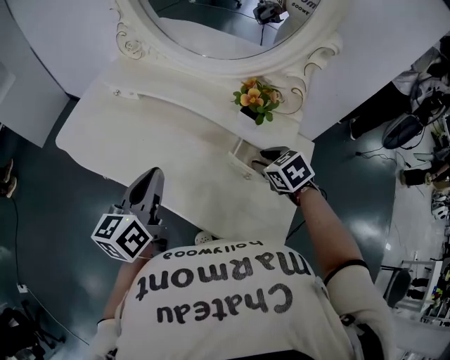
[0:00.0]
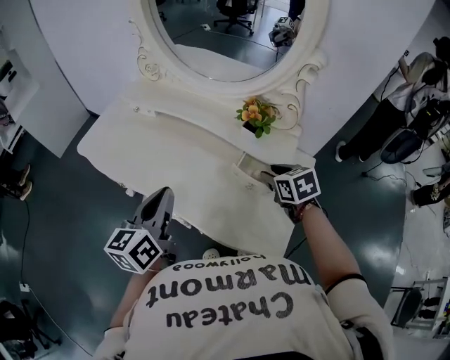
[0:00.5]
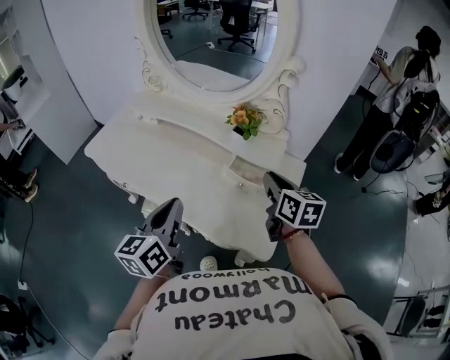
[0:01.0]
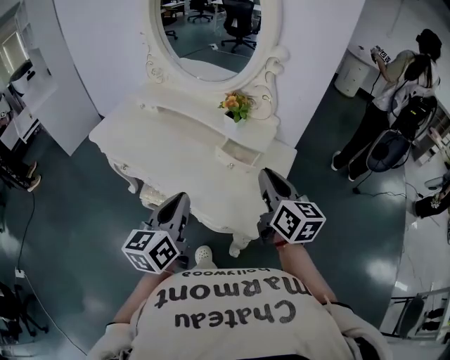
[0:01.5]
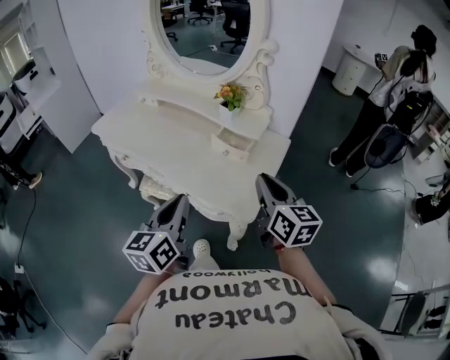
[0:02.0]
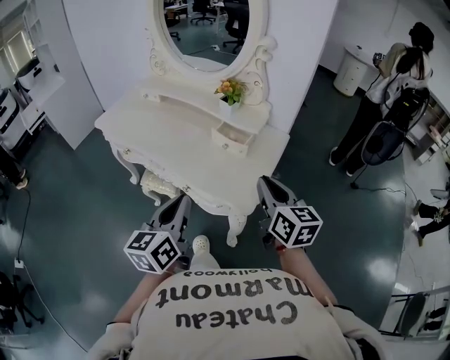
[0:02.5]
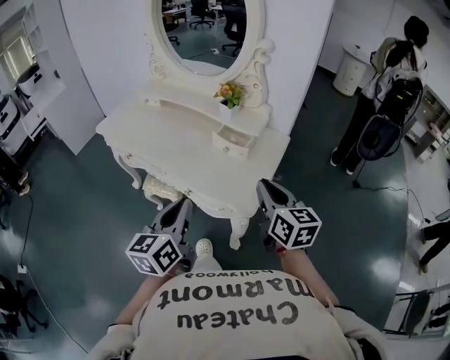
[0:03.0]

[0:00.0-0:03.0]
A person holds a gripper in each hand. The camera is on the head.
0:00.0 to 0:01.5: The right gripper moves upward and backward, approximately 25 cm, tilts its fingers roughly 50 degrees upward, and closes up; the left gripper is displaced backward and to the right by roughly 20 cm.
0:01.5 to 0:03.0: Both grippers travel together backward, some 10 cm.

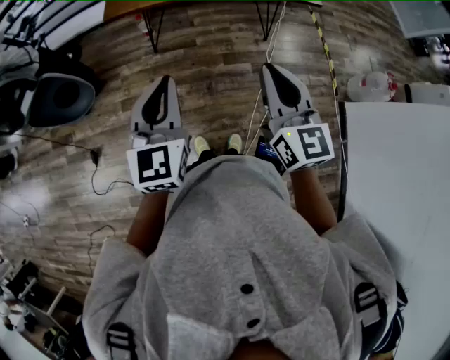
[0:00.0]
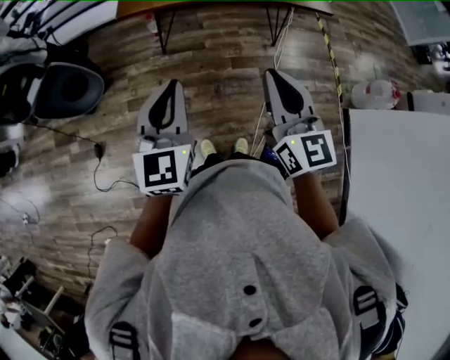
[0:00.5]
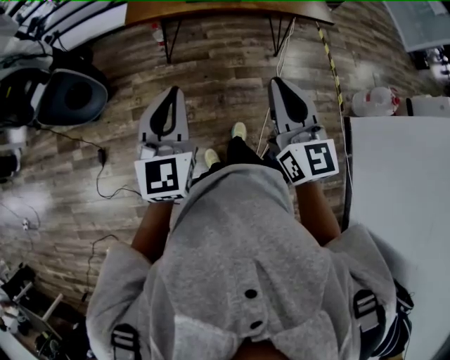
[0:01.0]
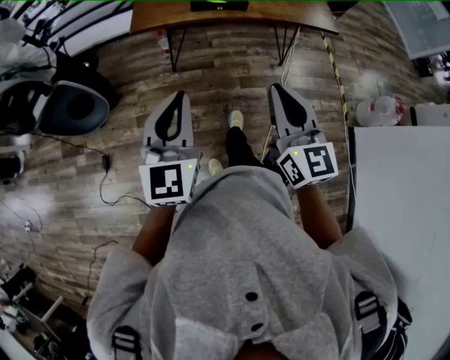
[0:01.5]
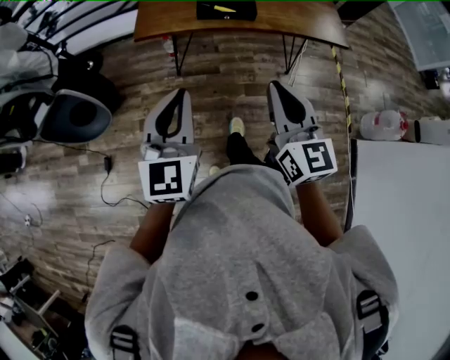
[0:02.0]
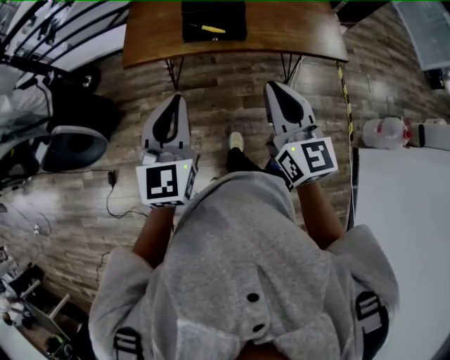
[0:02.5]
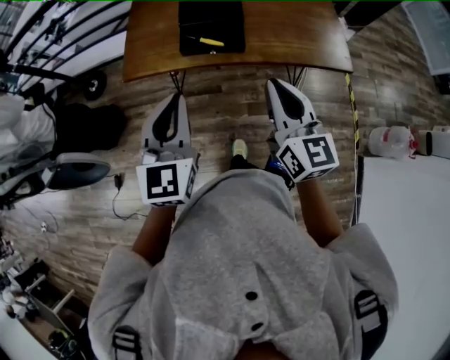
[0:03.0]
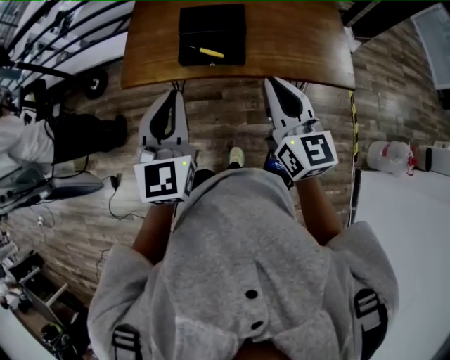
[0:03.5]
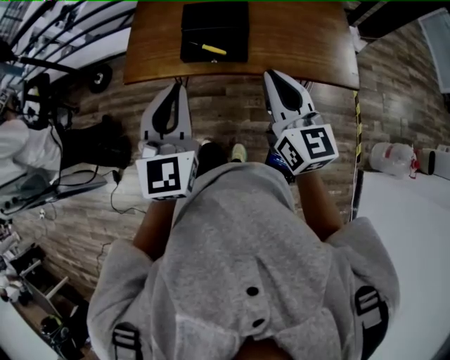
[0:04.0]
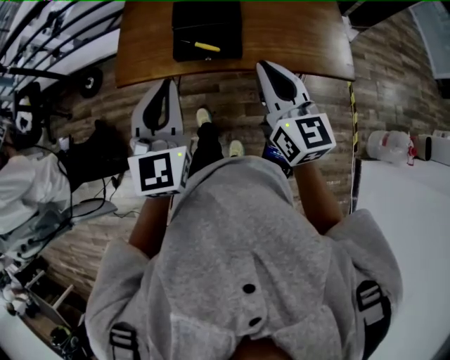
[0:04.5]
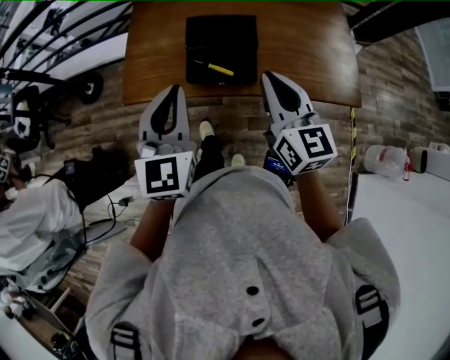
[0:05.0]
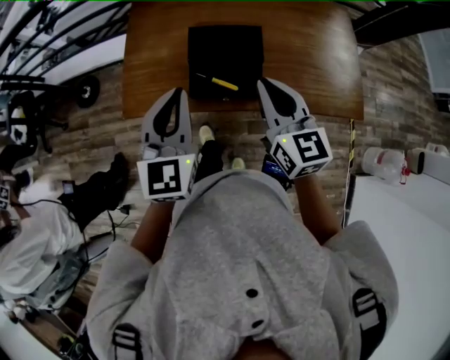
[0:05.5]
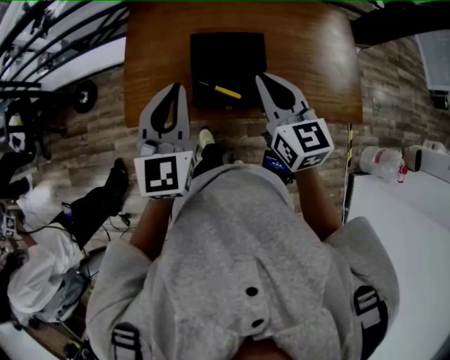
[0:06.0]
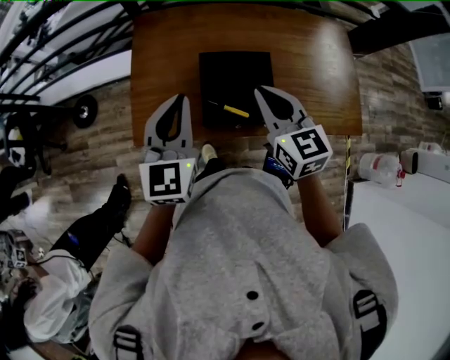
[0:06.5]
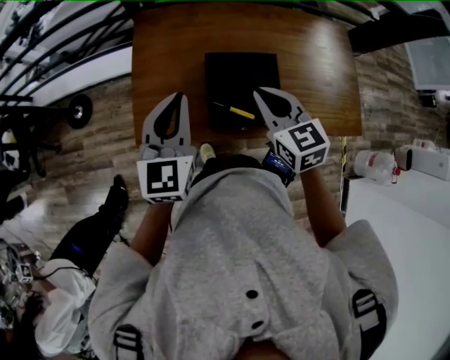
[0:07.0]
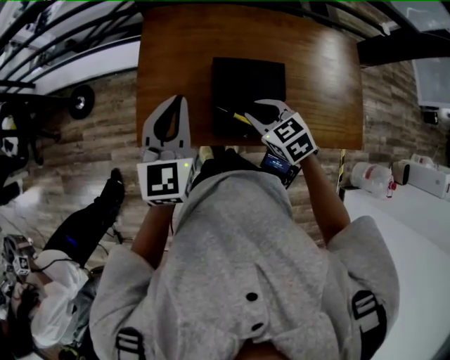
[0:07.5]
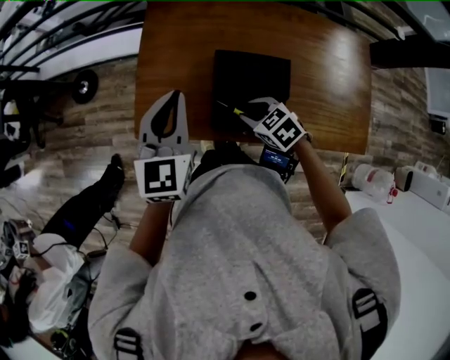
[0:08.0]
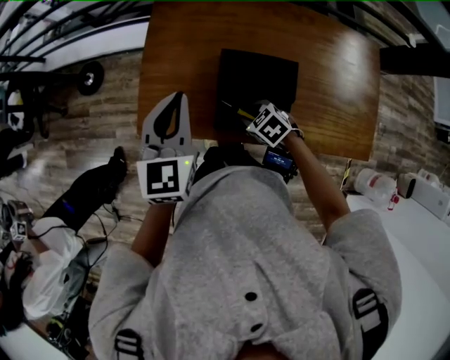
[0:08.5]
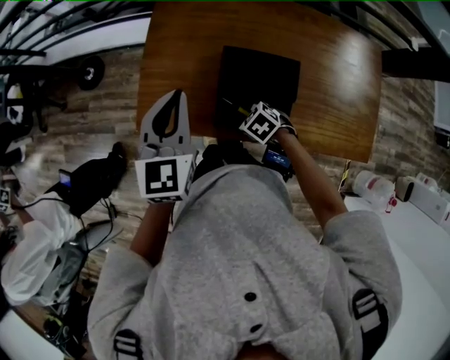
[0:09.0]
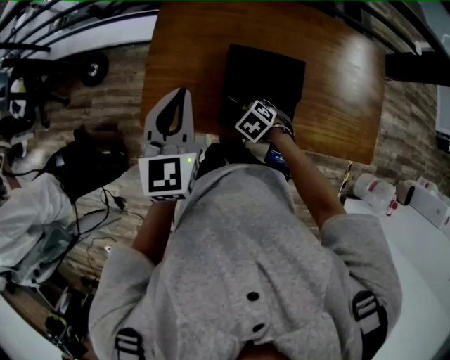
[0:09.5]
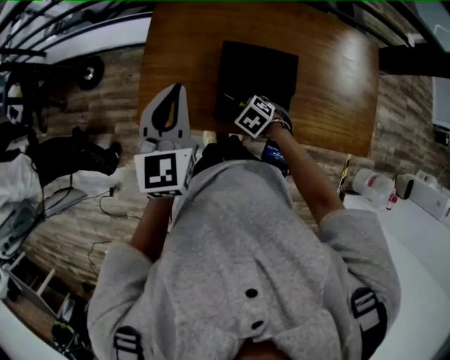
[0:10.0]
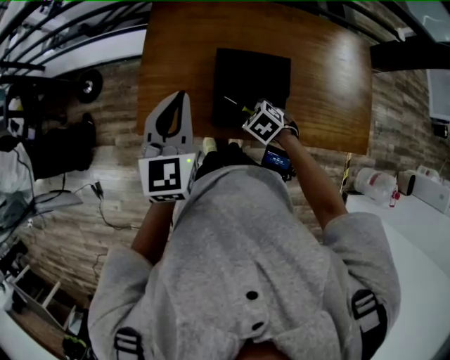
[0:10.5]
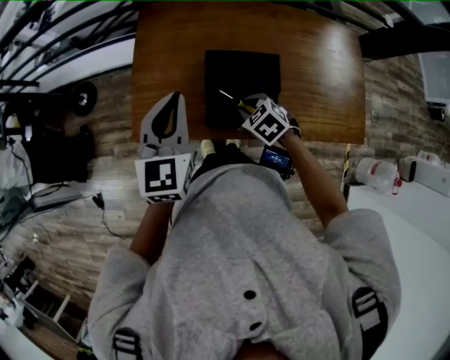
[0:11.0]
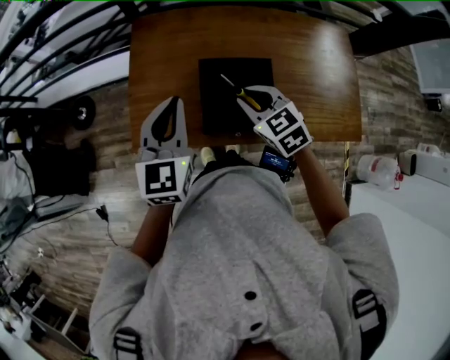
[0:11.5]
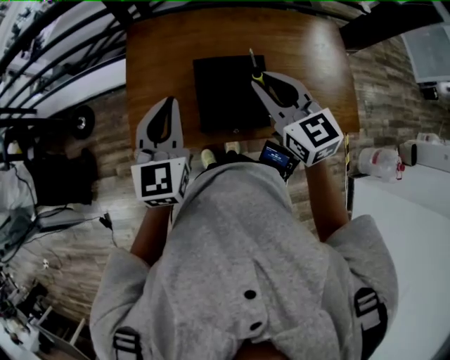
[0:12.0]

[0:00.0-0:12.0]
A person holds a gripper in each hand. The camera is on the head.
0:00.0 to 0:02.0: The left gripper is displaced forward by roughly 10 cm. The right gripper goes about 15 cm forward and to the left.
0:02.0 to 0:04.0: The grippers both shift forward and to the right by approximately 30 cm.
0:04.0 to 0:06.0: Both grippers move forward, approximately 25 cm.
0:06.0 to 0:08.0: The left gripper is displaced forward and to the left by roughly 10 cm. Meanwhile the right gripper shifts approximately 20 cm downward, points its fingers approximately 40 degrees further downward, and opens.
0:08.0 to 0:10.0: The right gripper shifts some 10 cm downward, and changes its angle by approximately 20 degrees.
0:10.0 to 0:12.0: The right gripper travels upward by roughly 30 cm, and tips its fingers upward by roughly 60 degrees.

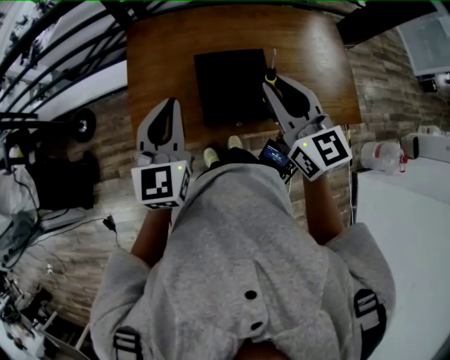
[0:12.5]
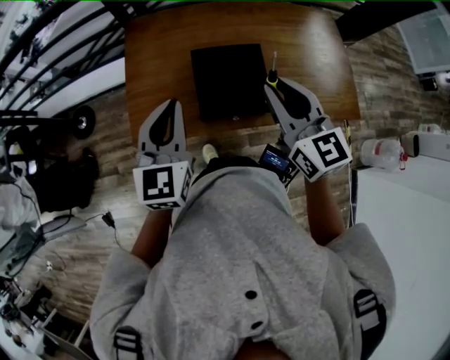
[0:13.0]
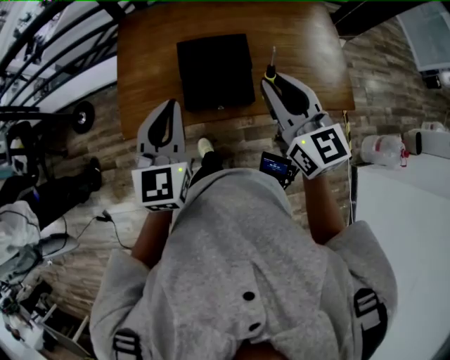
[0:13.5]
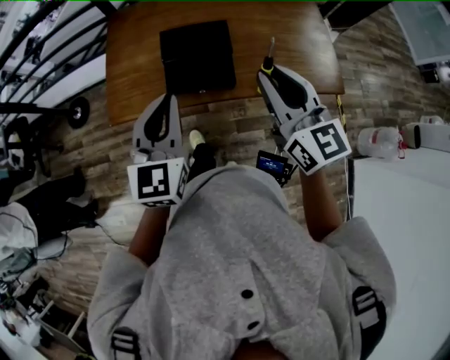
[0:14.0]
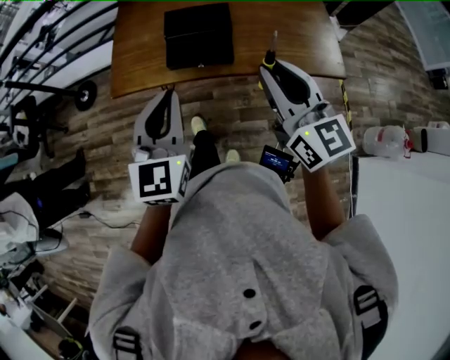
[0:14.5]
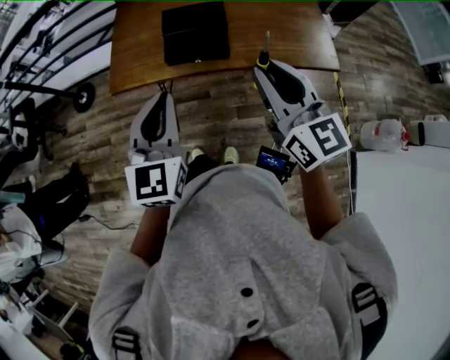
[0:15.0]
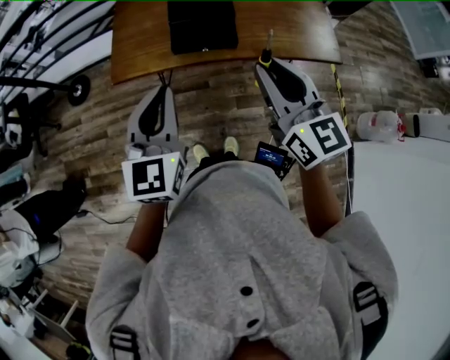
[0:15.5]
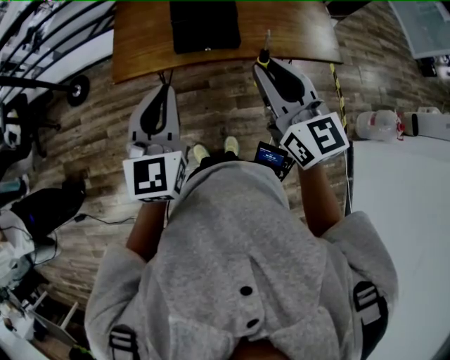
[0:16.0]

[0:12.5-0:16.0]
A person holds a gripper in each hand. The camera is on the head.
0:12.5 to 0:14.5: Both grippers travel together backward and to the right, some 30 cm.
0:14.5 to 0:16.0: The right gripper moves to the left and backward, approximately 10 cm; the left gripper travels to the left by about 10 cm.

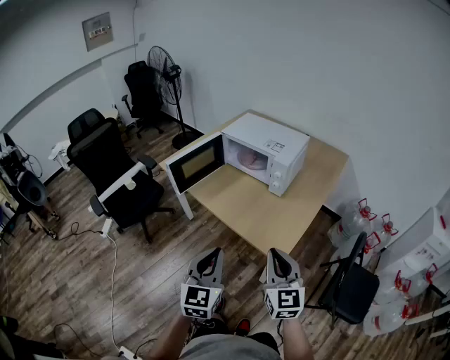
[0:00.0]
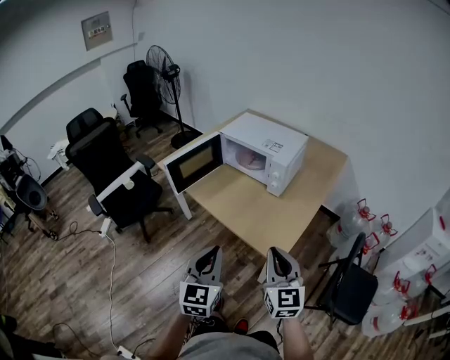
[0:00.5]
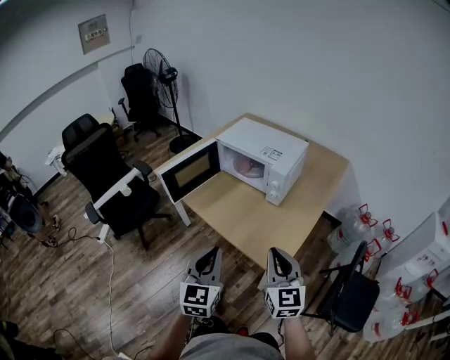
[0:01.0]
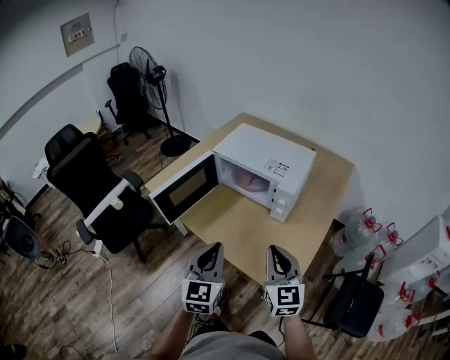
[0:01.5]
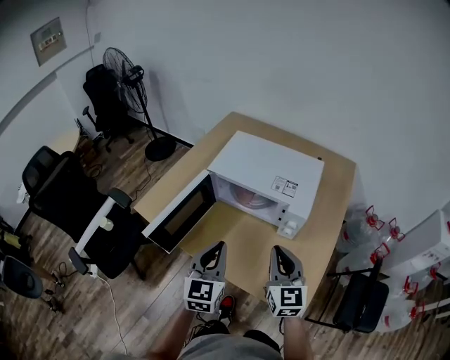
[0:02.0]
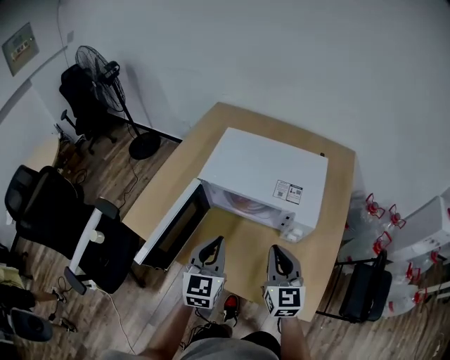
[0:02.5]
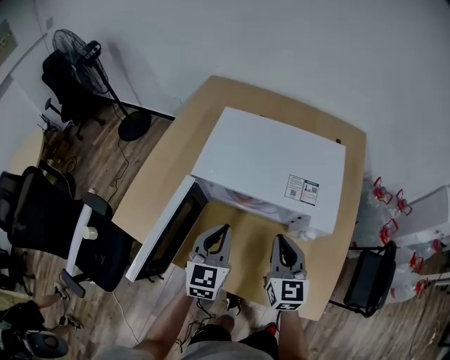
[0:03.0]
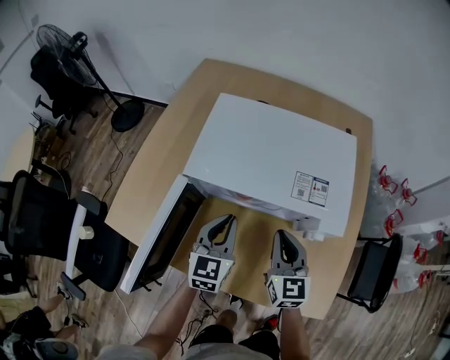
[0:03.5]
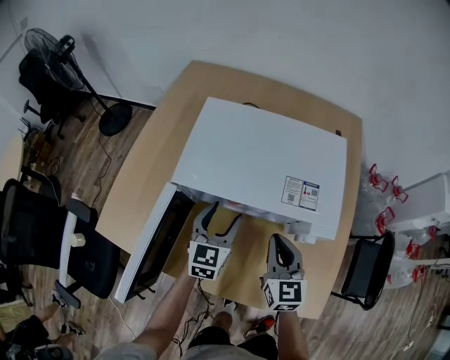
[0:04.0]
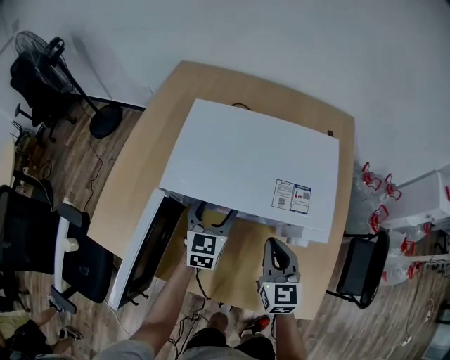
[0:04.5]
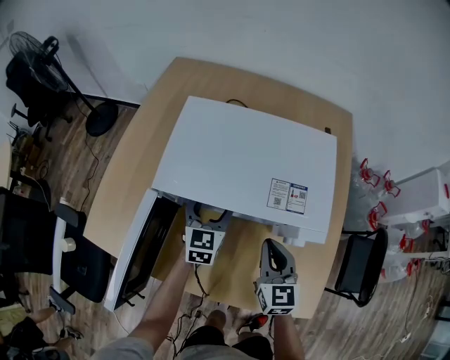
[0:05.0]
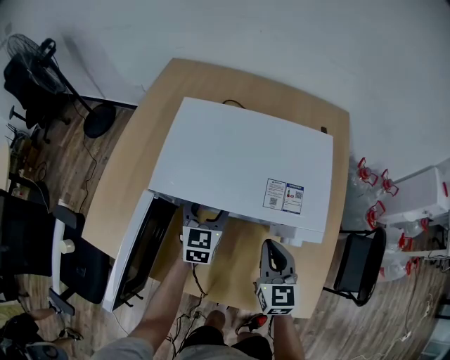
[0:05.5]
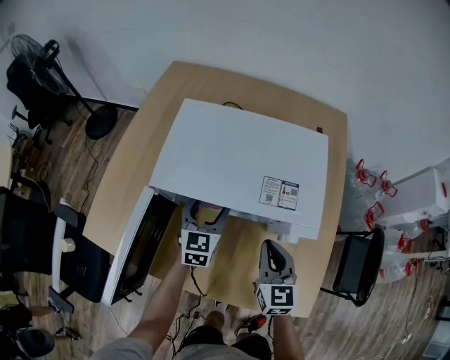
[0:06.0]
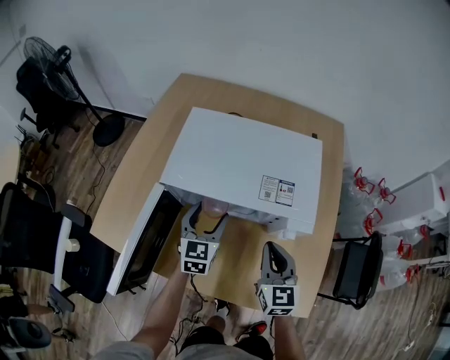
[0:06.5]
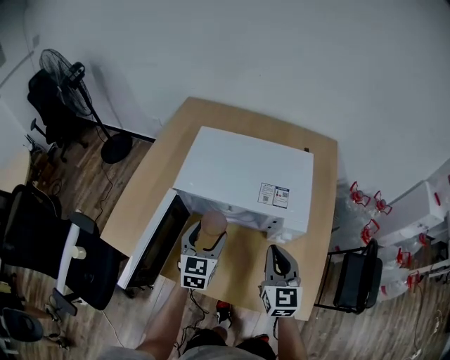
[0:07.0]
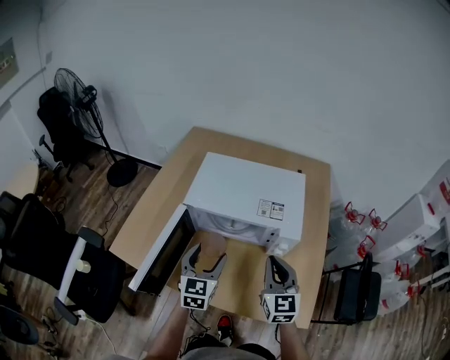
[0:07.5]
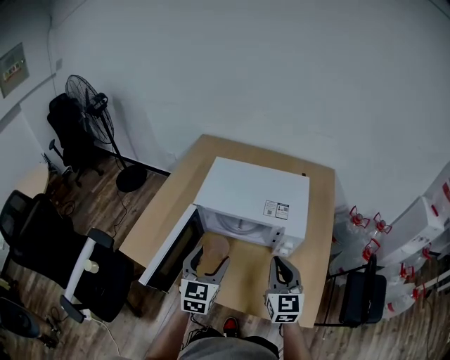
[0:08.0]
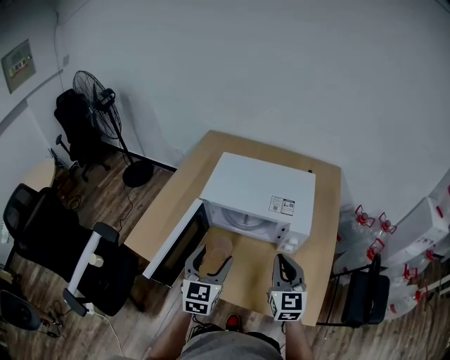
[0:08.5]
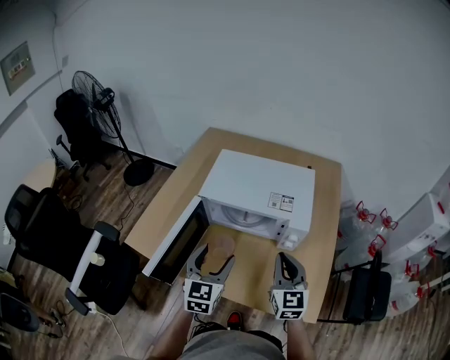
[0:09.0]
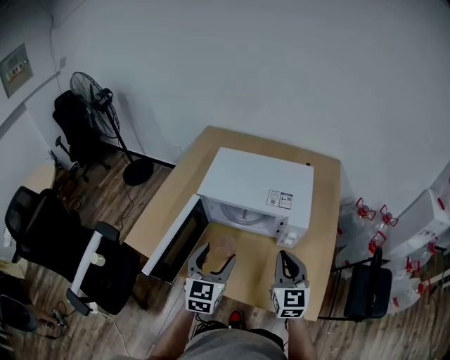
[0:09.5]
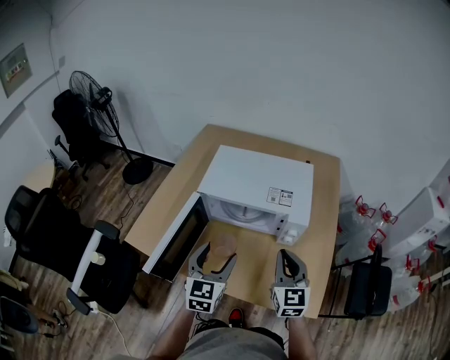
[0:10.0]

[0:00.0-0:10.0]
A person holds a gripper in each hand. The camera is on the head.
0:00.0 to 0:02.0: Both grippers move forward, approximately 35 cm.
0:02.0 to 0:04.0: Both grippers travel together forward and downward, roughly 25 cm. The left gripper opens its fingers.
0:06.0 to 0:08.0: The left gripper is displaced backward and upward by approximately 25 cm; the right gripper is displaced upward and backward by about 15 cm.
0:08.0 to 0:10.0: The grippers make only small movements.
